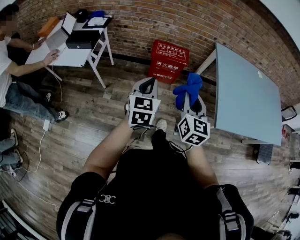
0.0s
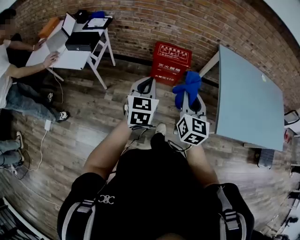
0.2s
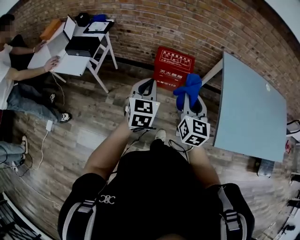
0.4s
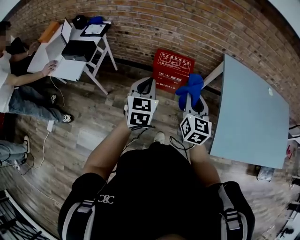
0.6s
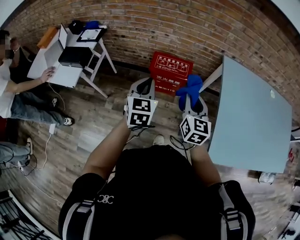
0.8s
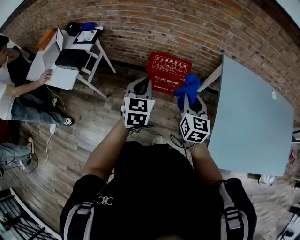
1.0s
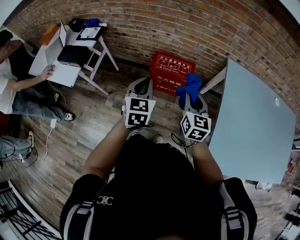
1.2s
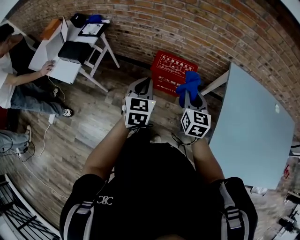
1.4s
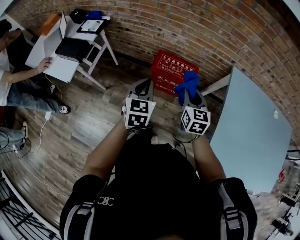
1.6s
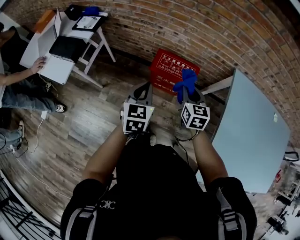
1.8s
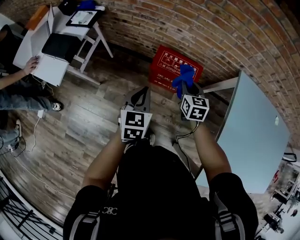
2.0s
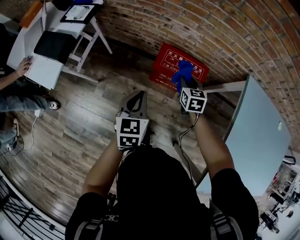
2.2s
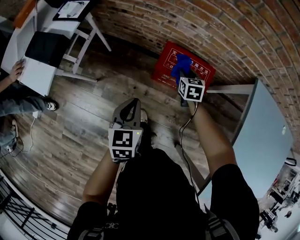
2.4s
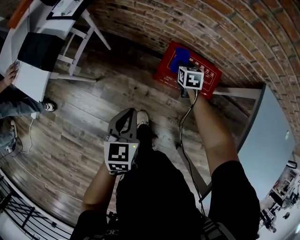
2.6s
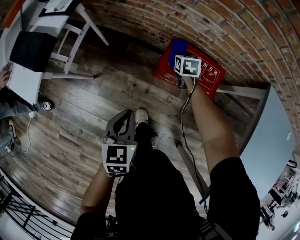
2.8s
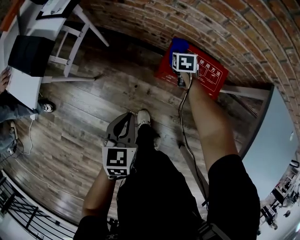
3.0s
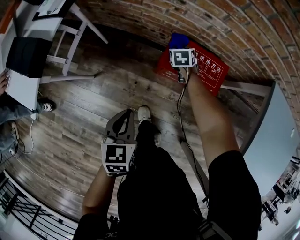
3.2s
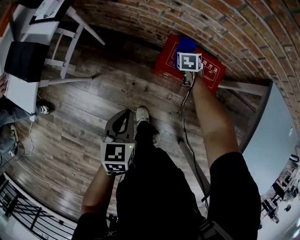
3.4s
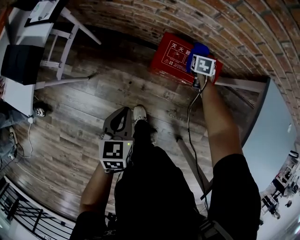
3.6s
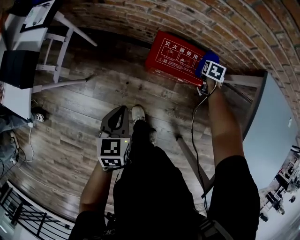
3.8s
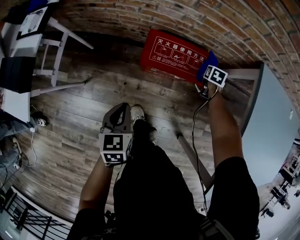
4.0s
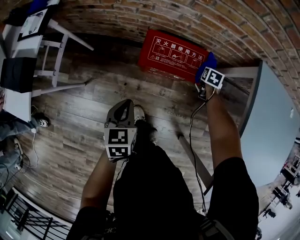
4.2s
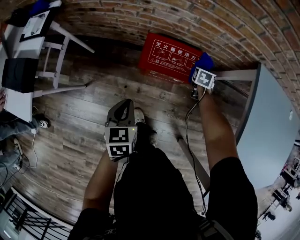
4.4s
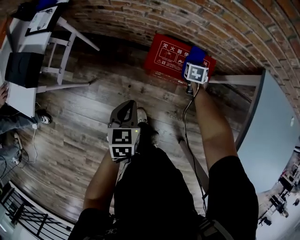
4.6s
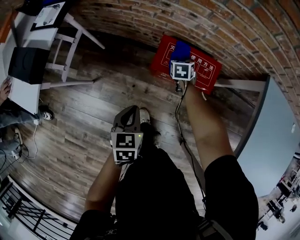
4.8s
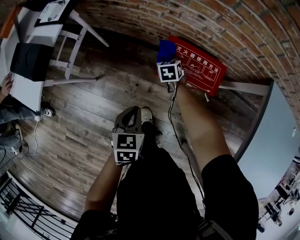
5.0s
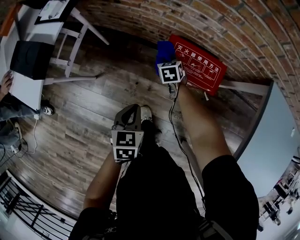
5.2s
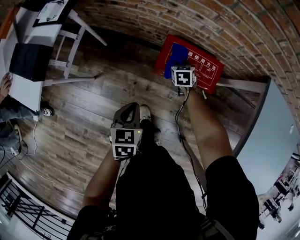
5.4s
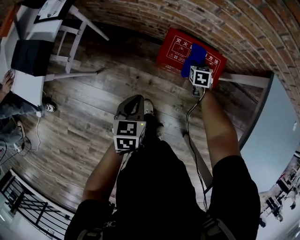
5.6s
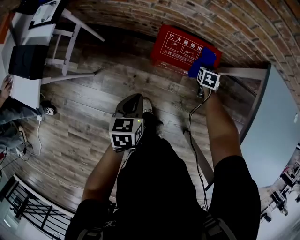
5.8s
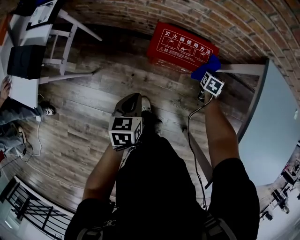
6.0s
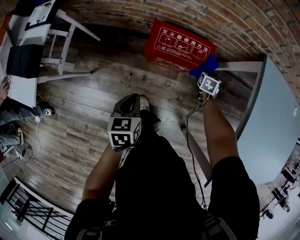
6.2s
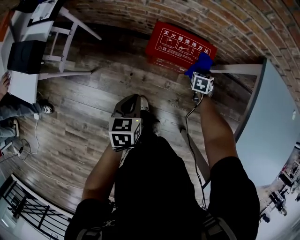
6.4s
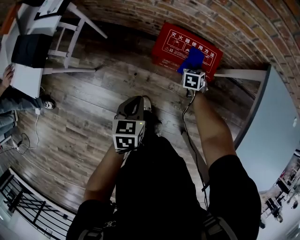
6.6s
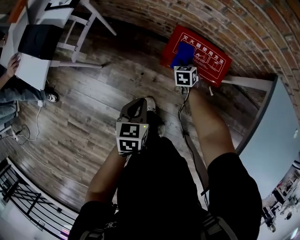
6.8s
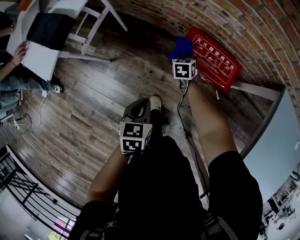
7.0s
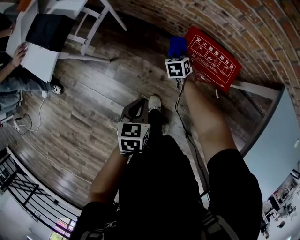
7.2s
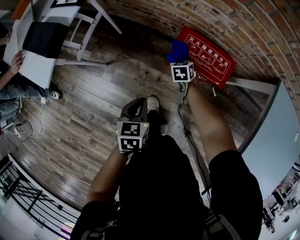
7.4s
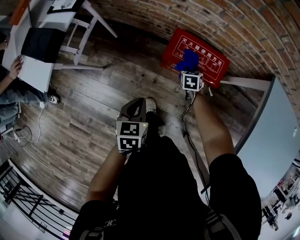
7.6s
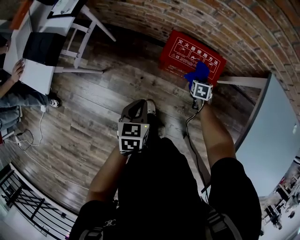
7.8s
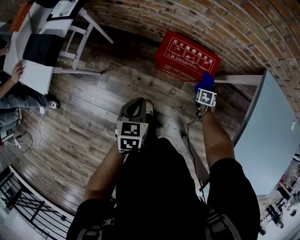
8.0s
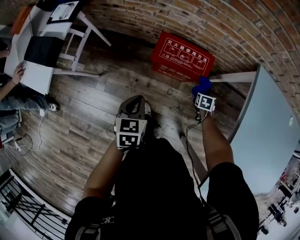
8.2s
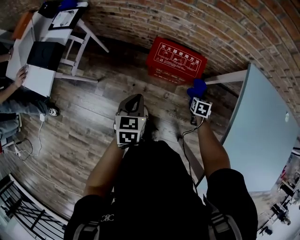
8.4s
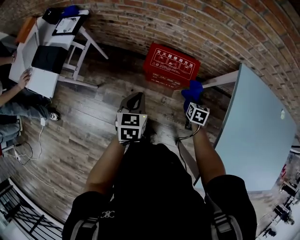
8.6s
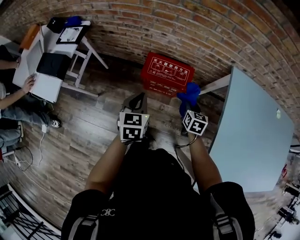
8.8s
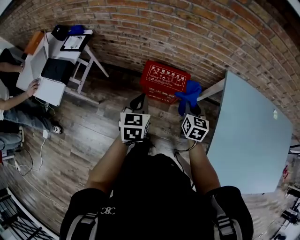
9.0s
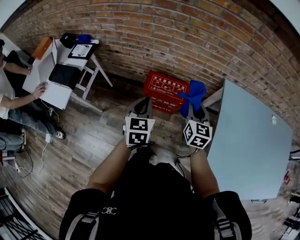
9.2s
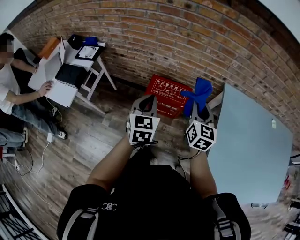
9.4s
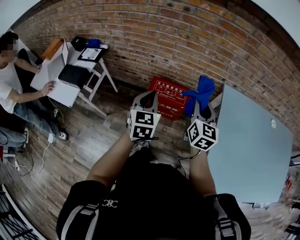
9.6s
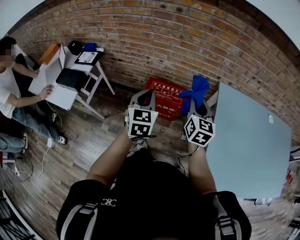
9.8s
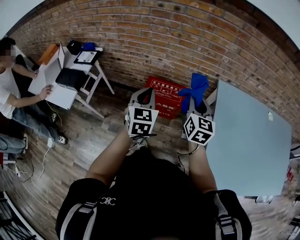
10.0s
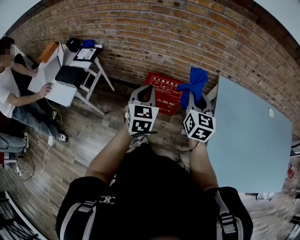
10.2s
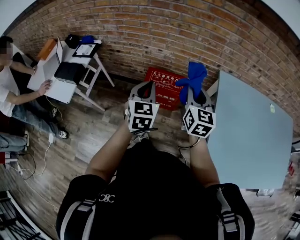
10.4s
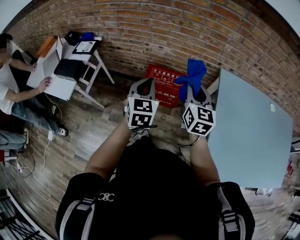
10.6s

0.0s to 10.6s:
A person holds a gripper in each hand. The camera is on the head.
0.0s to 1.6s: Both grippers move forward, some 30 cm. The right gripper rotates roughly 20 degrees.
1.6s to 3.0s: The left gripper heads downward and to the left, covering roughly 25 cm. The right gripper shifts about 50 cm downward and forward, and angles its fingers downward, by approximately 30 degrees.
3.0s to 4.6s: The right gripper travels to the right by some 20 cm. Meanwhile the left gripper shifts about 5 cm forward.
6.0s to 7.6s: The right gripper rotates about 30 degrees.
7.6s to 9.0s: The left gripper moves upward and to the right, approximately 25 cm, and rotates roughly 20 degrees. The right gripper goes about 40 cm upward, to the right and backward, and tips its fingers upward by about 30 degrees.
9.0s to 10.6s: The left gripper moves upward, about 10 cm; the right gripper heads upward, covering about 20 cm.

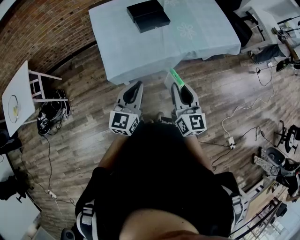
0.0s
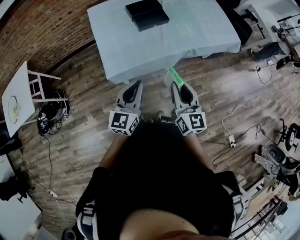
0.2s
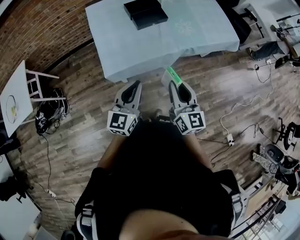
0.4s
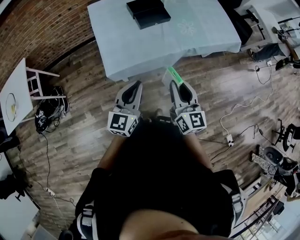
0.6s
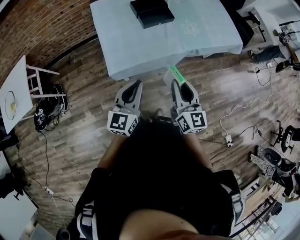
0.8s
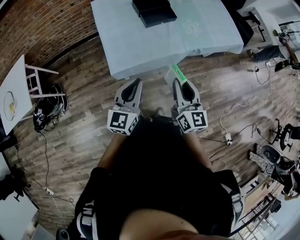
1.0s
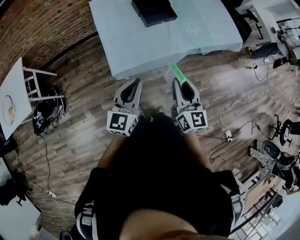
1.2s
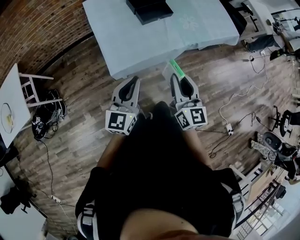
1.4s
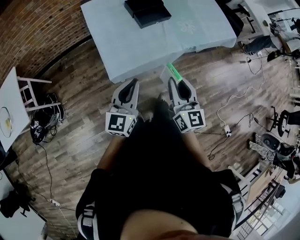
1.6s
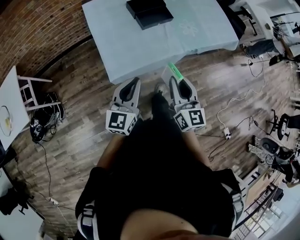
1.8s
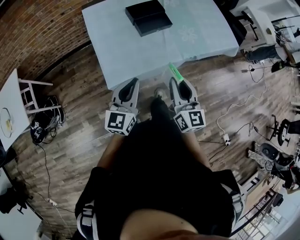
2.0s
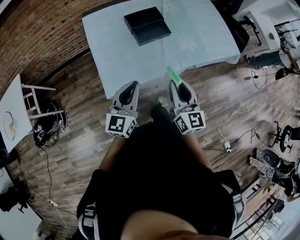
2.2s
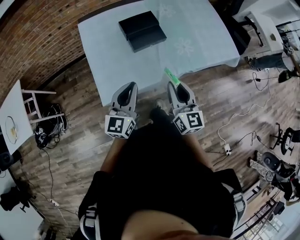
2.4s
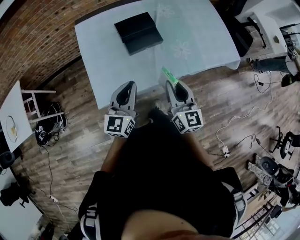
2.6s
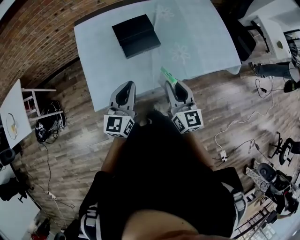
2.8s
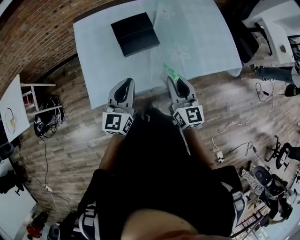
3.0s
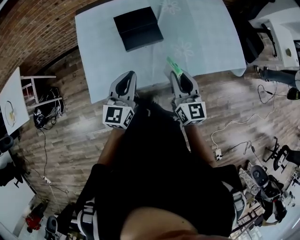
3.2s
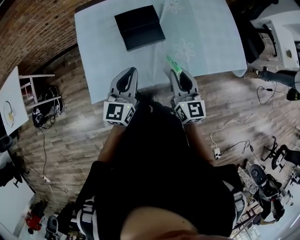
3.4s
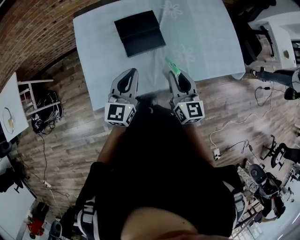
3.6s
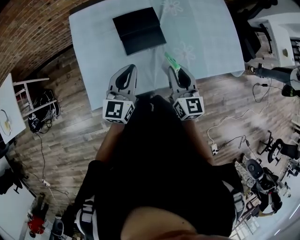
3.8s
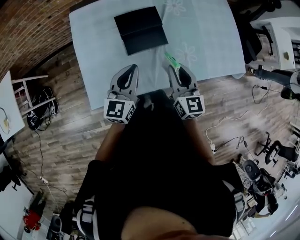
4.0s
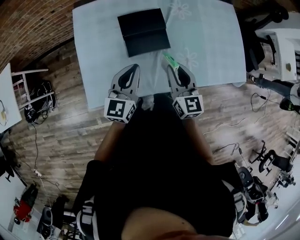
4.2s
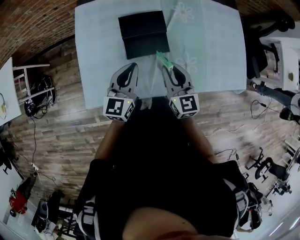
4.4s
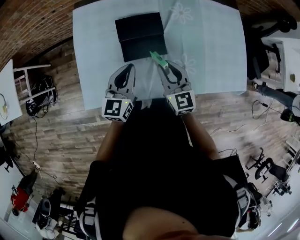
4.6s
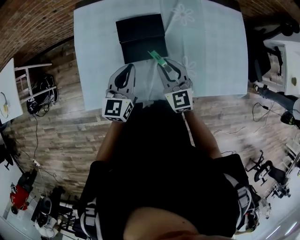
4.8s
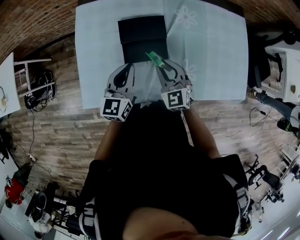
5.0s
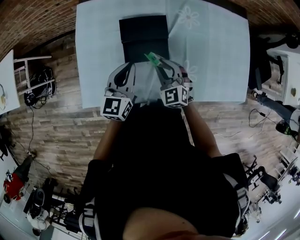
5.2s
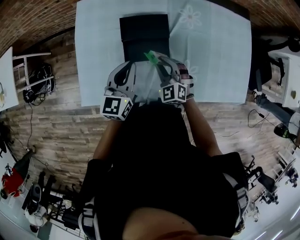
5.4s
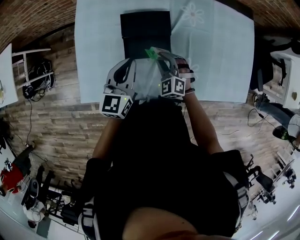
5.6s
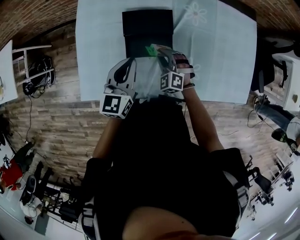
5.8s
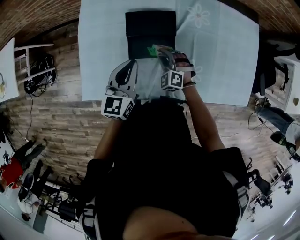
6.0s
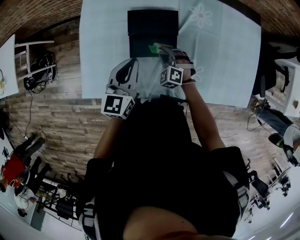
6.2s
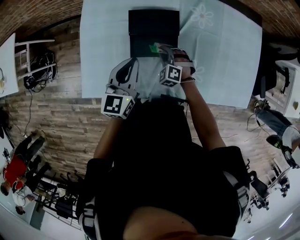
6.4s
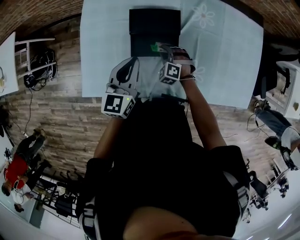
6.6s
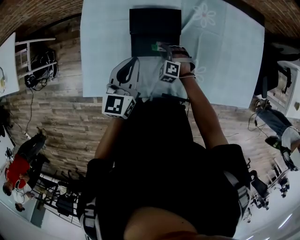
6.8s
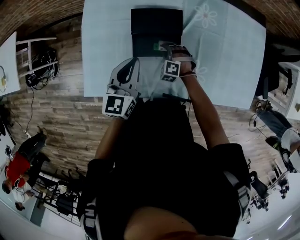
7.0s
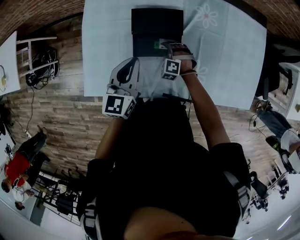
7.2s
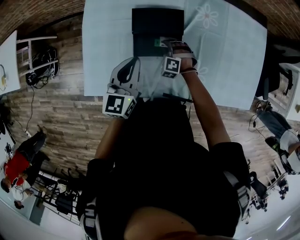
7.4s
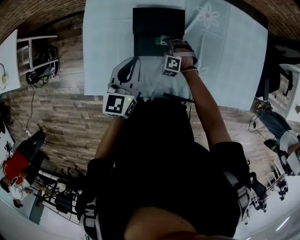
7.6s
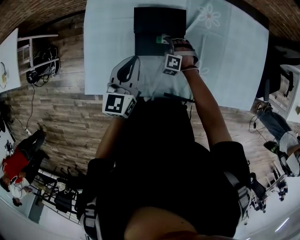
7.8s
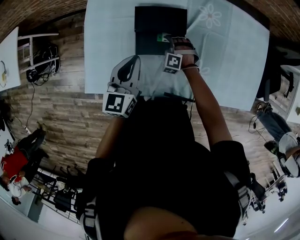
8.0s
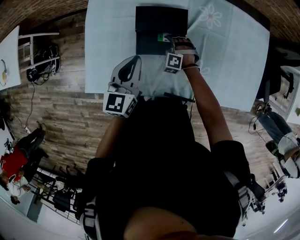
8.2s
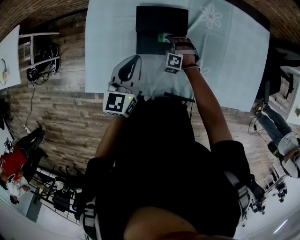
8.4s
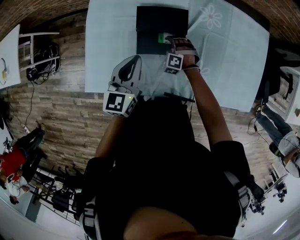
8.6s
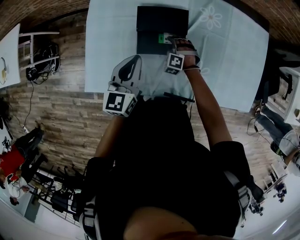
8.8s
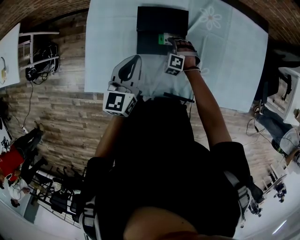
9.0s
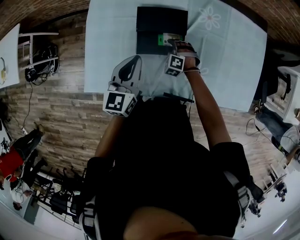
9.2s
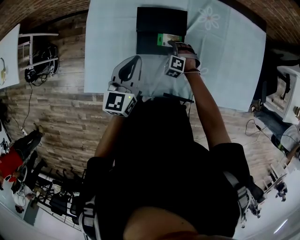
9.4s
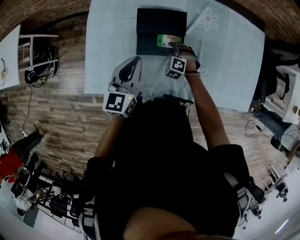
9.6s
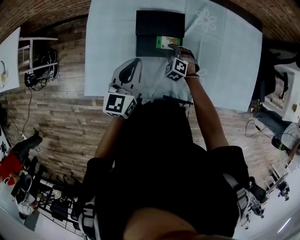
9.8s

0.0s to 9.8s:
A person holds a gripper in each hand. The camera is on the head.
0.0s to 1.4s: The two grippers go some 10 cm to the left.
1.4s to 2.8s: Both grippers travel together forward and to the right, approximately 25 cm.
2.8s to 4.2s: The two grippers go approximately 15 cm forward.
4.2s to 5.6s: The left gripper goes about 10 cm forward. The right gripper goes some 20 cm downward and forward, and rolls counterclockwise, seen from behind, by approximately 50 degrees.
5.6s to 7.0s: The right gripper is displaced downward by some 15 cm, and rotates roughly 30 degrees.
7.0s to 8.4s: The grippers stay close to where they were, moving slightly.
8.4s to 9.8s: The right gripper rotates some 20 degrees.

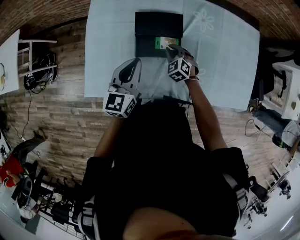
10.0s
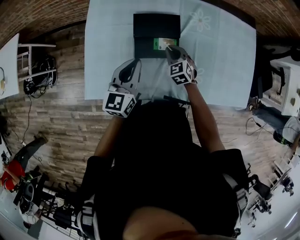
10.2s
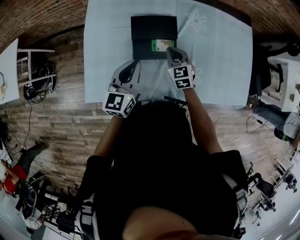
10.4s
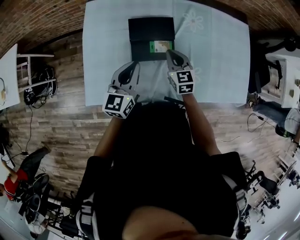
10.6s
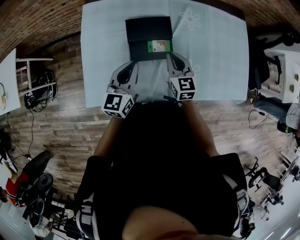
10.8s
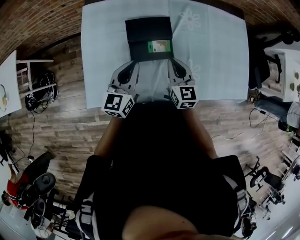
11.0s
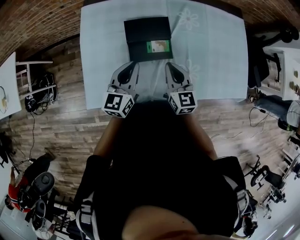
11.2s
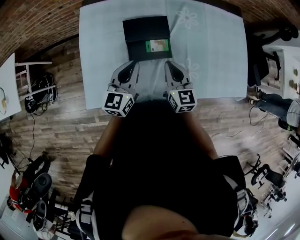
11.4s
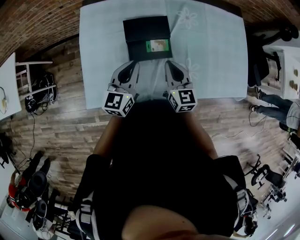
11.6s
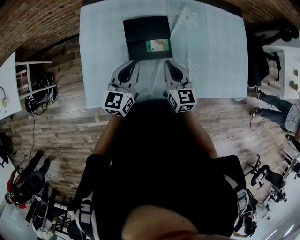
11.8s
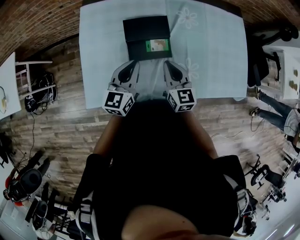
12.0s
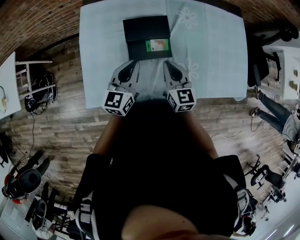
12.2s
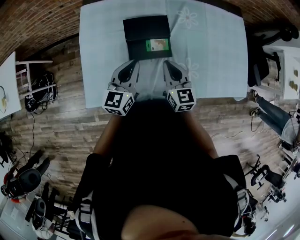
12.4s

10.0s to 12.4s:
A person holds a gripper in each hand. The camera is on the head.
10.0s to 11.2s: The right gripper heads upward and backward, covering some 20 cm, and tilts its fingers roughly 30 degrees upward.
11.2s to 12.4s: The two grippers keep their place.

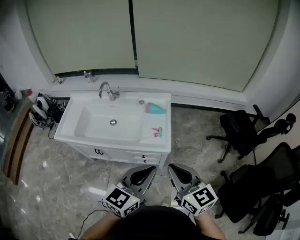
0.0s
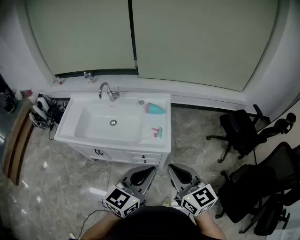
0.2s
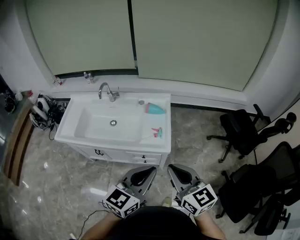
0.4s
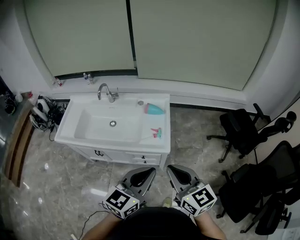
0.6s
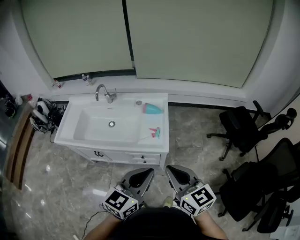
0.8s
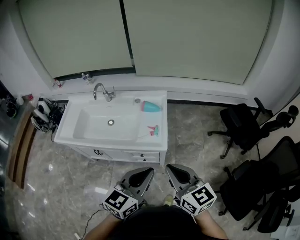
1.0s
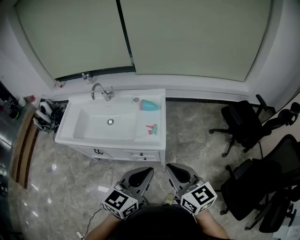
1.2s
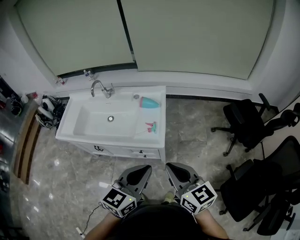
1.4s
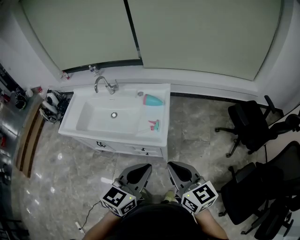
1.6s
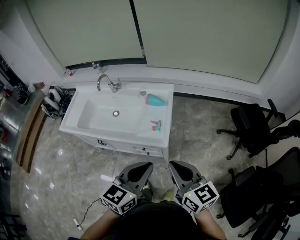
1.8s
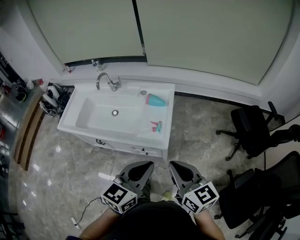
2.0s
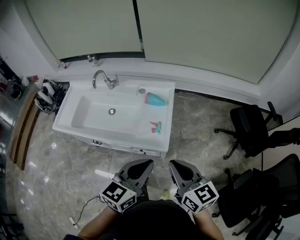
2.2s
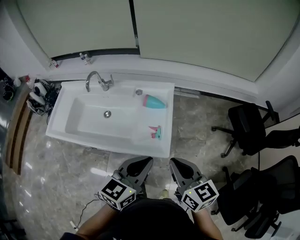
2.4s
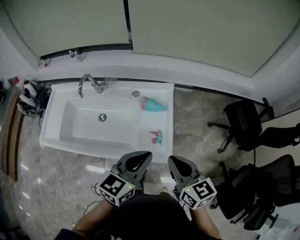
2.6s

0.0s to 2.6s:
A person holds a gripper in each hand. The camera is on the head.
0.0s to 1.2s: The two grippers go about 5 cm to the right.
1.2s to 2.6s: Both grippers travel together forward, roughly 25 cm.
